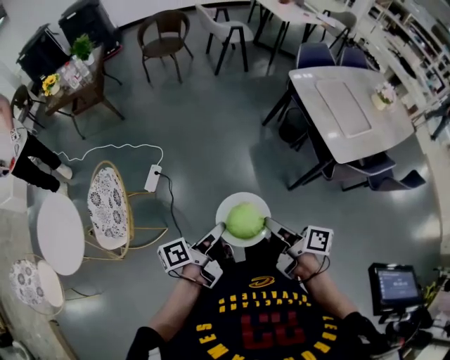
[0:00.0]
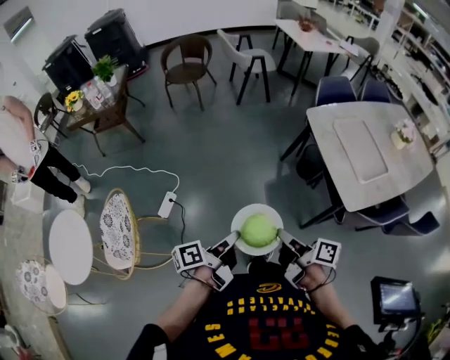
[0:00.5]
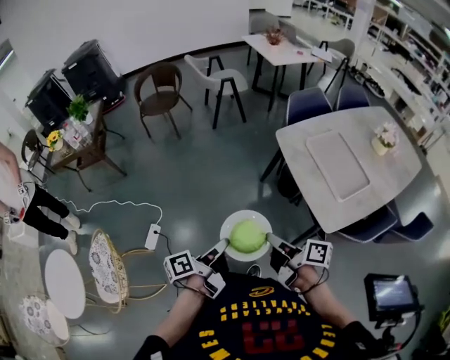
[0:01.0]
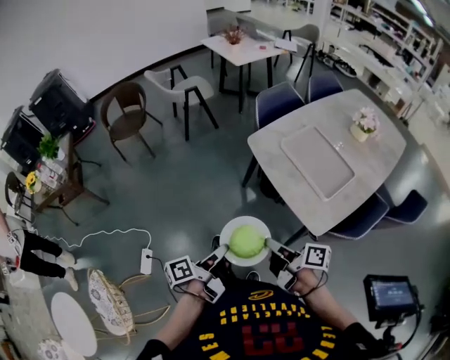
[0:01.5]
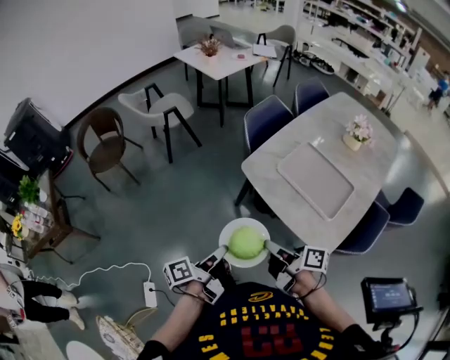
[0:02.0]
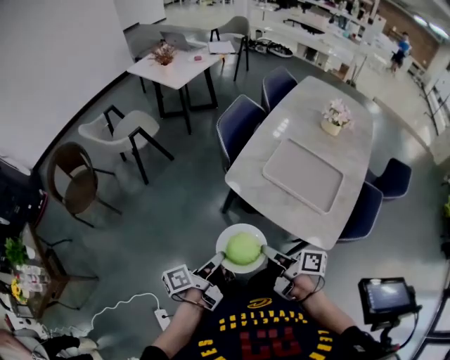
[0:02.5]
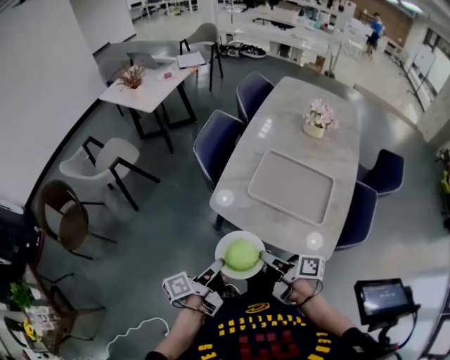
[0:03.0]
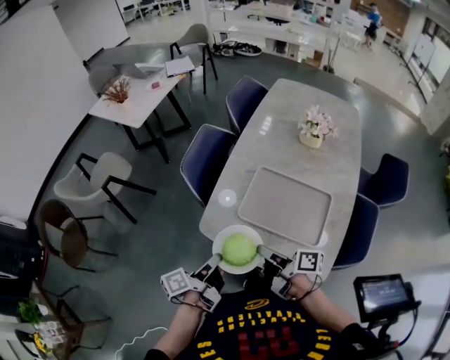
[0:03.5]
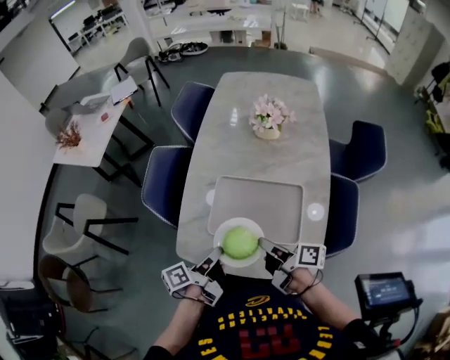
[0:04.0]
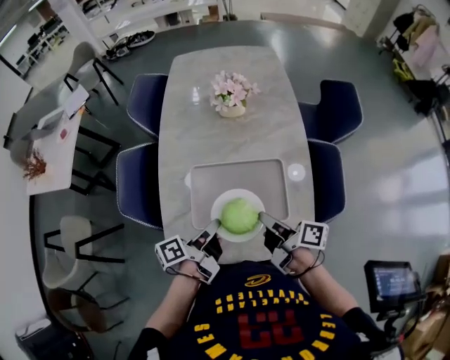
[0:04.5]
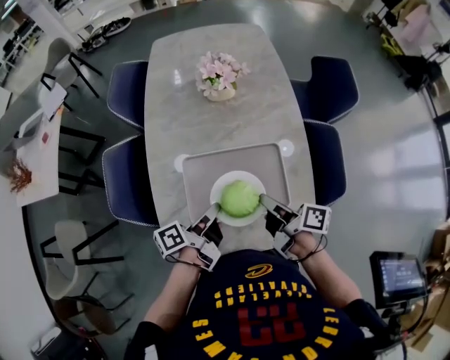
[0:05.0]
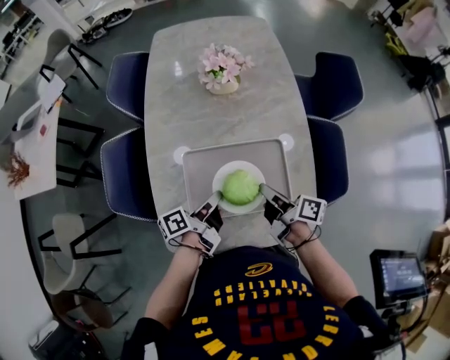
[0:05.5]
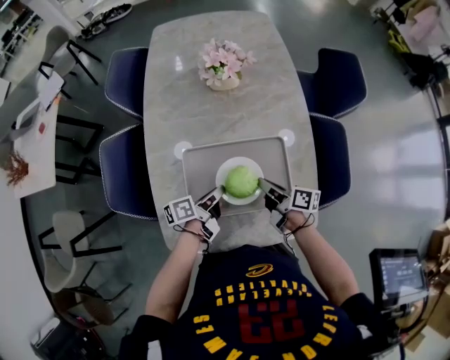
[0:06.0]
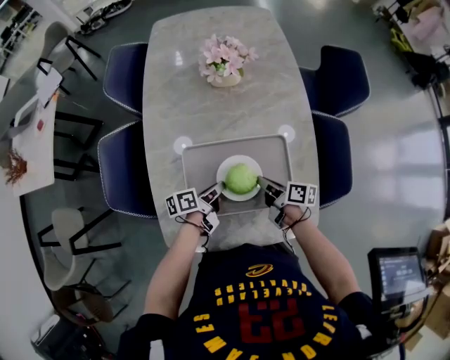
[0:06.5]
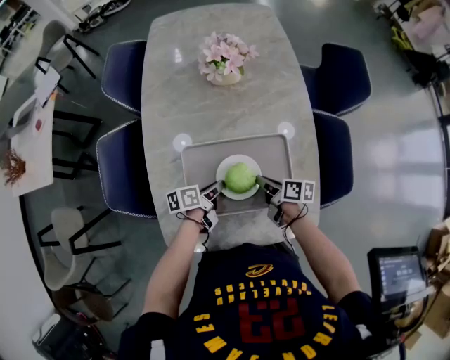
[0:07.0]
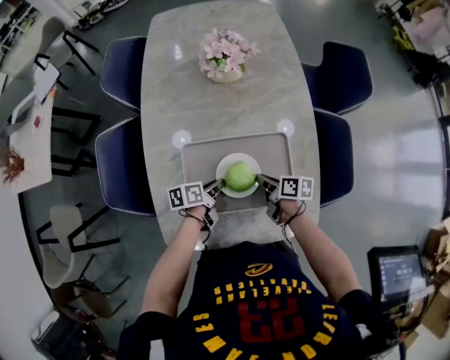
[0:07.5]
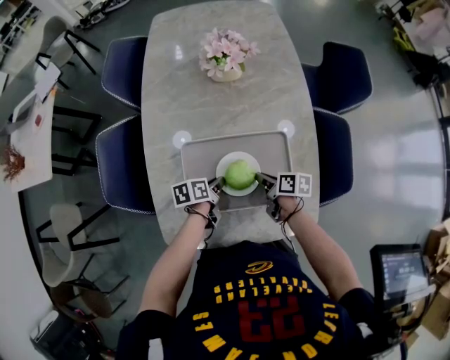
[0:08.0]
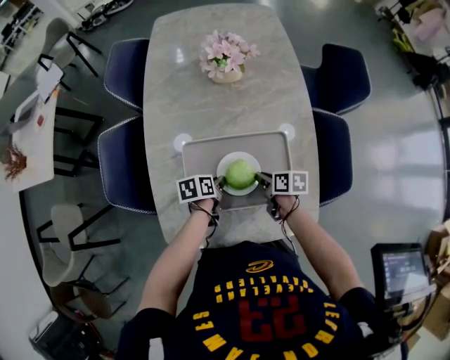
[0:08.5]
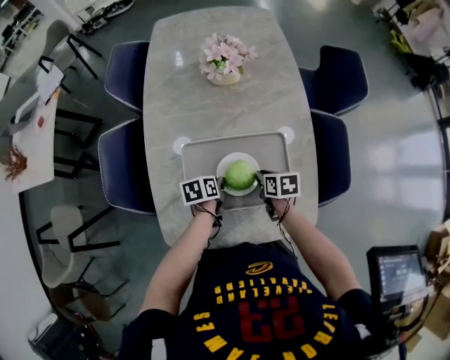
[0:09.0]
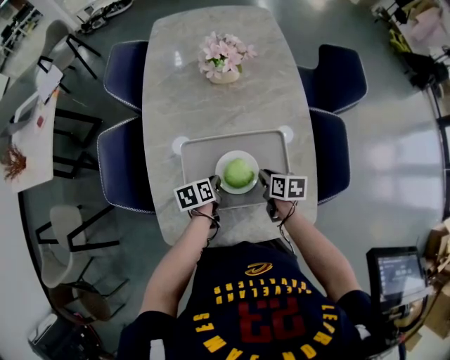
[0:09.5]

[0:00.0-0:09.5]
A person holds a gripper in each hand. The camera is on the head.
0:00.0 to 0:02.0: The right gripper changes place by roughly 50 cm, and turns by about 20 degrees.
0:02.0 to 0:04.0: The right gripper changes place by roughly 35 cm, and swivels approximately 30 degrees.
0:04.0 to 0:05.5: The right gripper shifts by about 10 cm, and changes its angle by roughly 20 degrees.
0:05.5 to 0:07.5: The right gripper heads downward, covering approximately 15 cm, and changes its angle by approximately 30 degrees.
0:07.5 to 0:09.5: The right gripper swivels roughly 20 degrees.

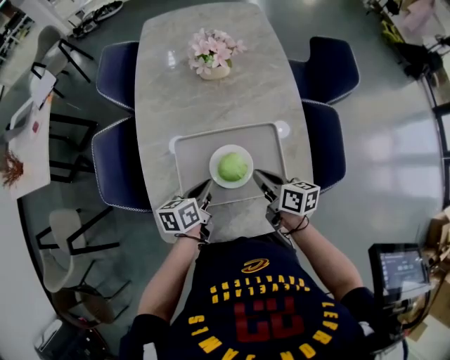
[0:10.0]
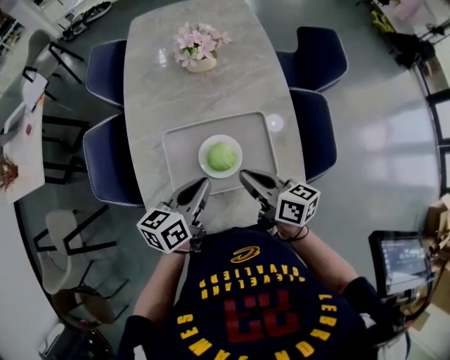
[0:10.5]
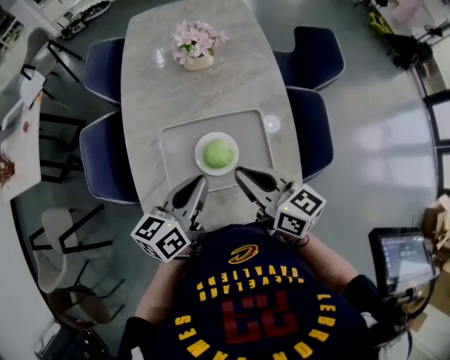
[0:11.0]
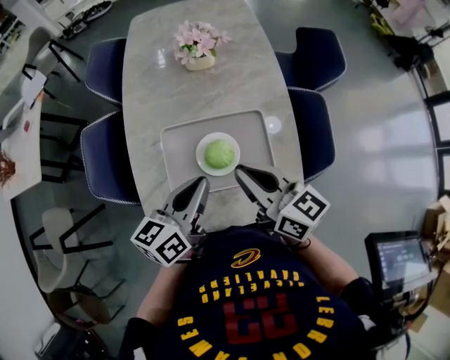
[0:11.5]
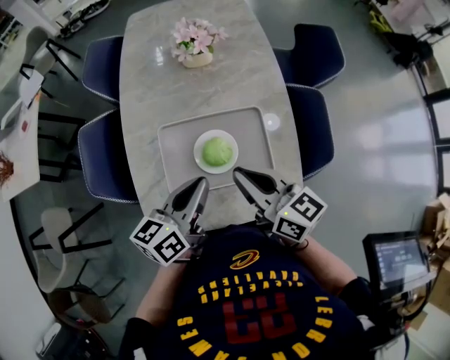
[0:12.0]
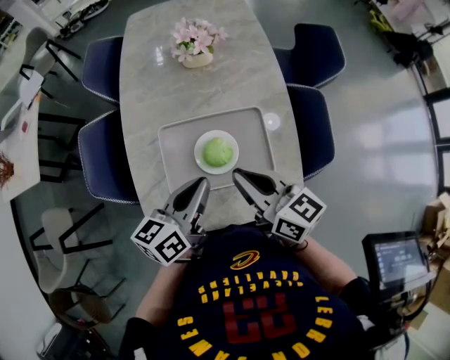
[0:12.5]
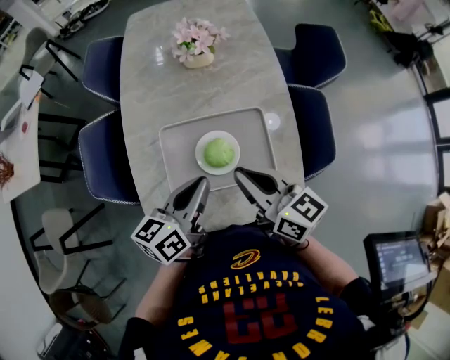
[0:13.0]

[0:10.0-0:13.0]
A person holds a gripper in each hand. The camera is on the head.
0:10.0 to 0:11.5: The right gripper is displaced upward by approximately 20 cm, and changes its angle by approximately 30 degrees.

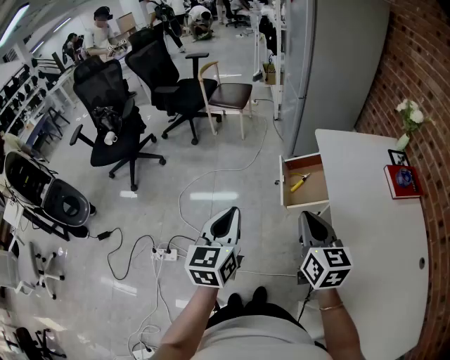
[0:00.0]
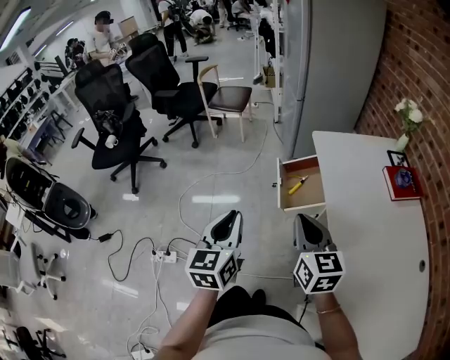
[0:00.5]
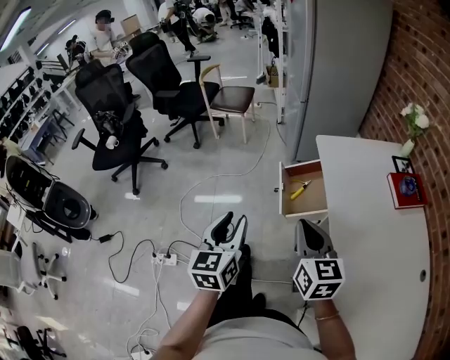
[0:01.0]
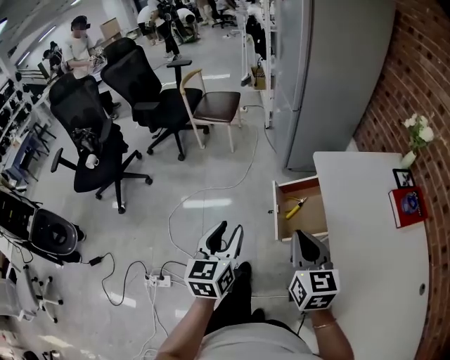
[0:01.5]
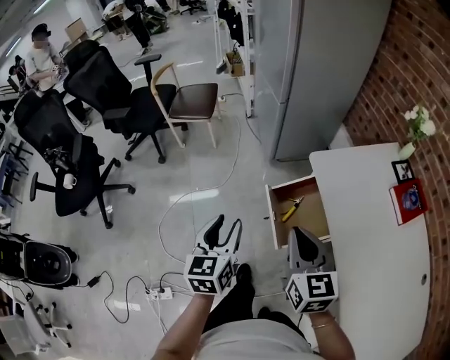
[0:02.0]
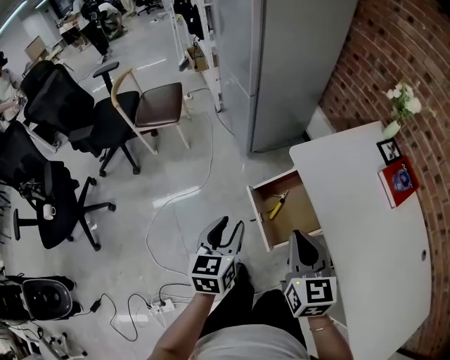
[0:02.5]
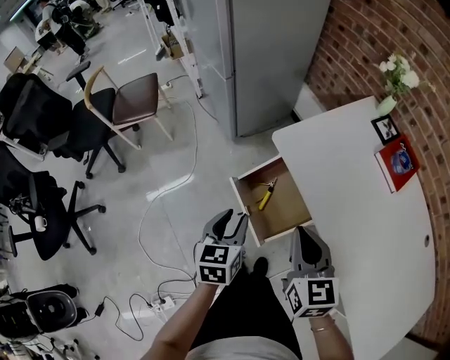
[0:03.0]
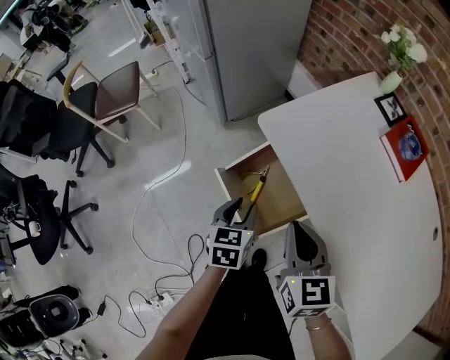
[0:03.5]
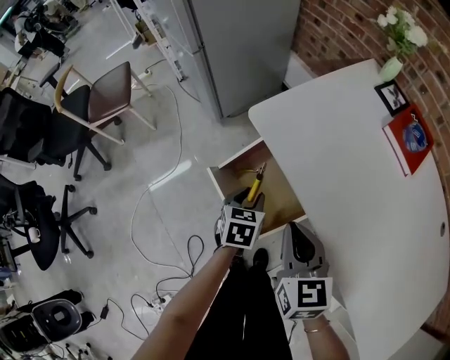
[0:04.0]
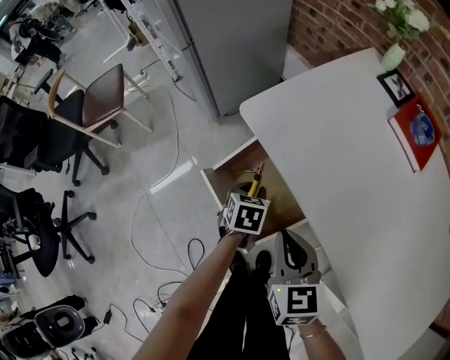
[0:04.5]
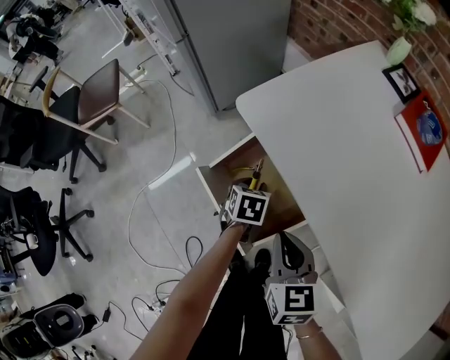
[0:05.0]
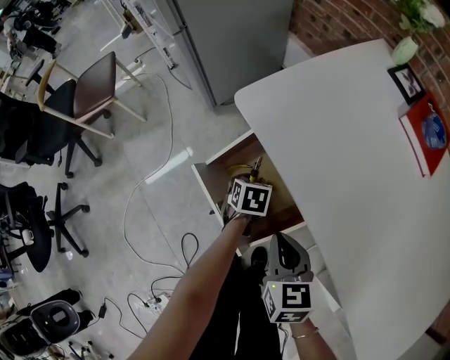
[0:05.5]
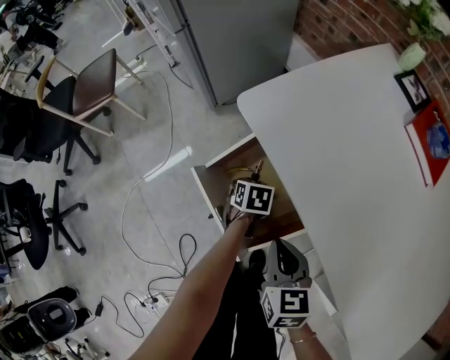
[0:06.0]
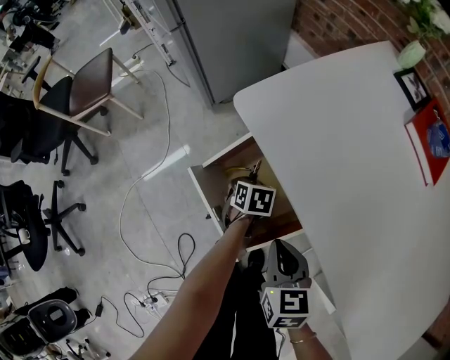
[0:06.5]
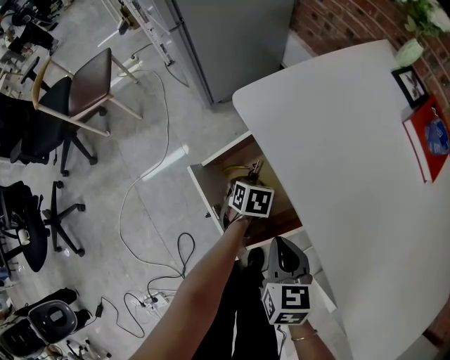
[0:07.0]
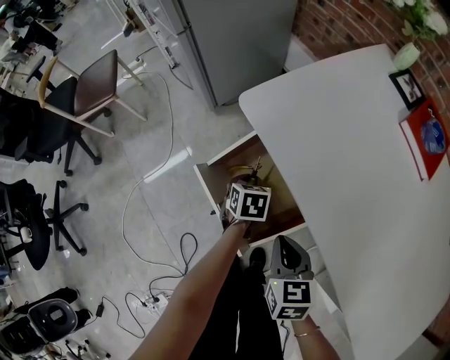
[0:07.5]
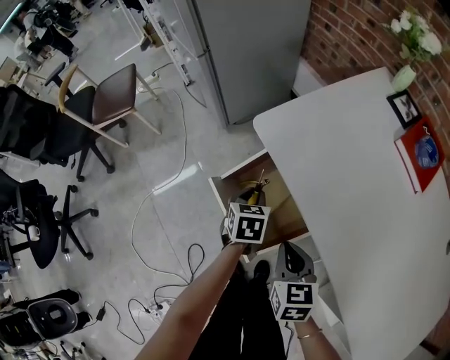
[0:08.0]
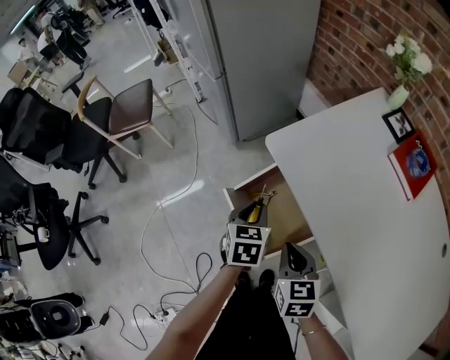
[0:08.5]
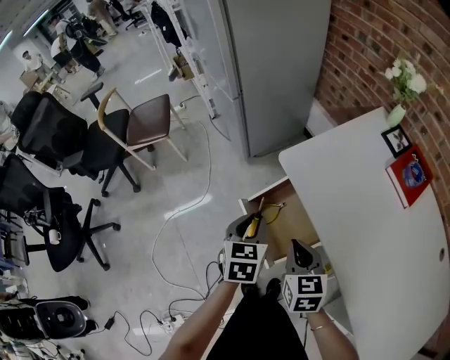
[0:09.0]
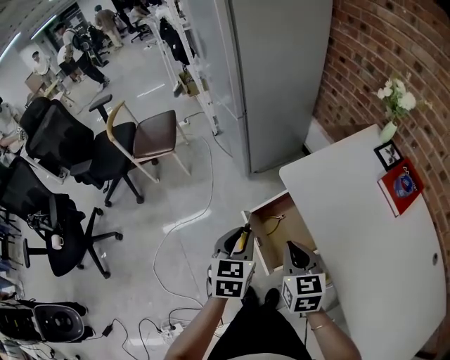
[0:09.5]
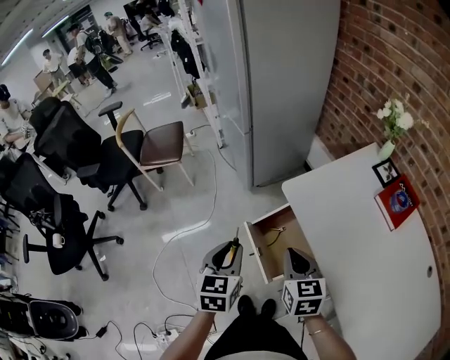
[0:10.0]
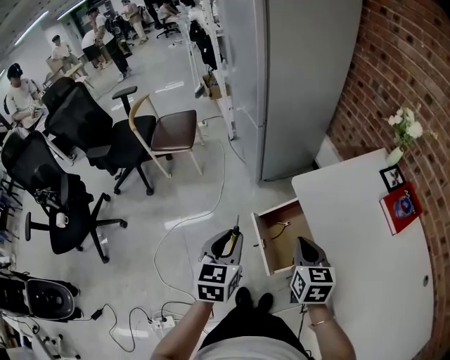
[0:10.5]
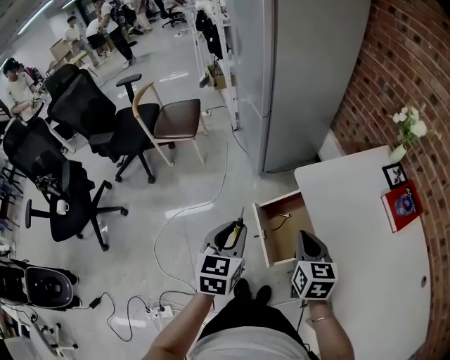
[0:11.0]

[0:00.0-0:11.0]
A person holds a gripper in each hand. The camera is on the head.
0:00.0 to 0:02.0: The grippers both shift forward by some 25 cm. The left gripper opens up.
0:02.0 to 0:03.5: The left gripper moves downward, to the right and forward, approximately 30 cm, and rotates some 30 degrees; the right gripper is displaced downward, to the right and forward by about 20 cm, and turns by some 20 degrees.
0:03.5 to 0:05.5: The right gripper heads downward, covering some 15 cm. Meanwhile the left gripper travels downward and forward by approximately 25 cm, and swivels roughly 20 degrees.
0:05.5 to 0:07.5: The grippers stay close to where they were, moving slightly.
0:07.5 to 0:09.0: The left gripper moves upward, approximately 25 cm, and swivels approximately 20 degrees, while the right gripper is displaced upward by some 15 cm.
0:09.0 to 0:11.0: The left gripper moves upward, to the left and backward, approximately 15 cm; the right gripper goes about 10 cm upward.

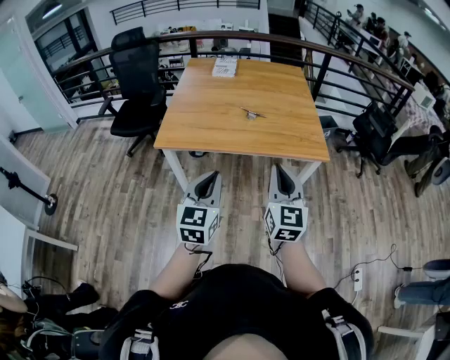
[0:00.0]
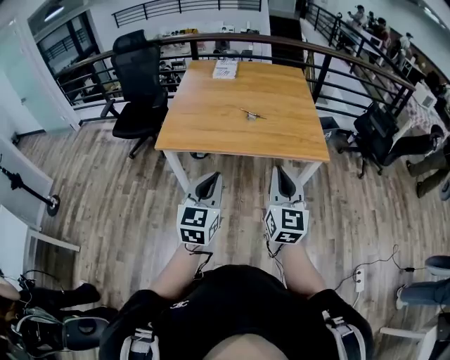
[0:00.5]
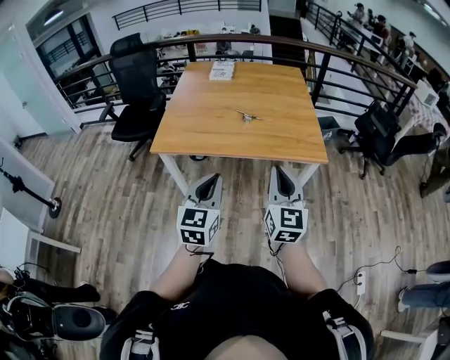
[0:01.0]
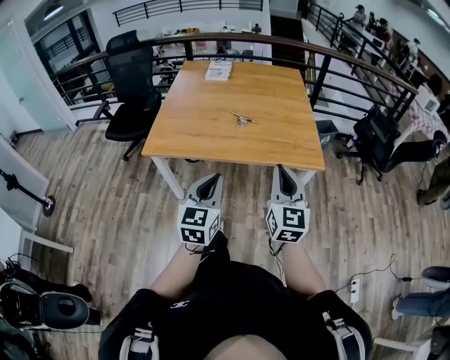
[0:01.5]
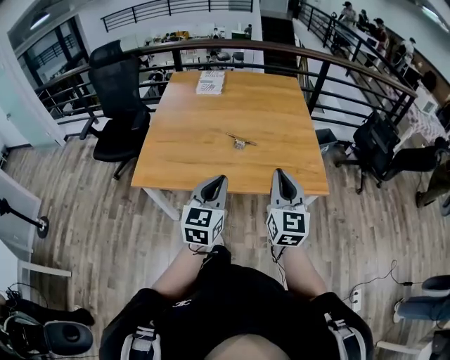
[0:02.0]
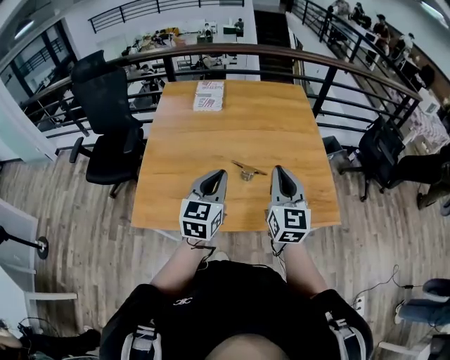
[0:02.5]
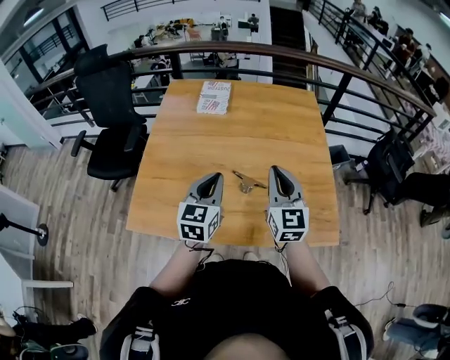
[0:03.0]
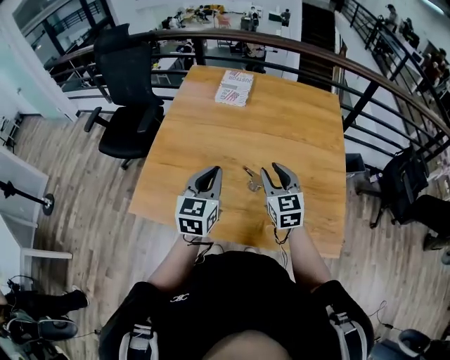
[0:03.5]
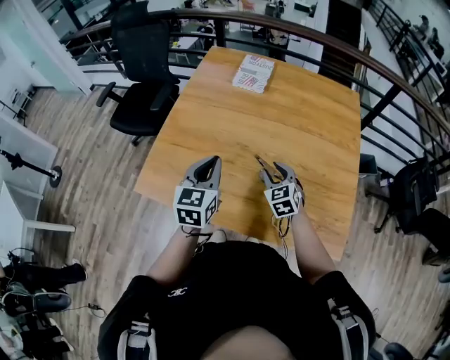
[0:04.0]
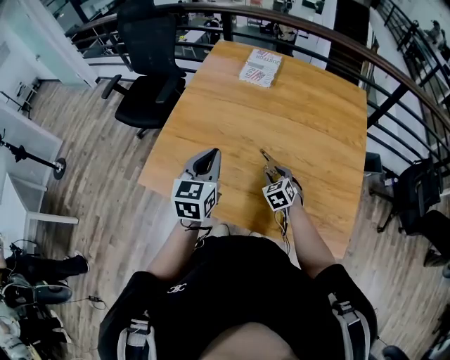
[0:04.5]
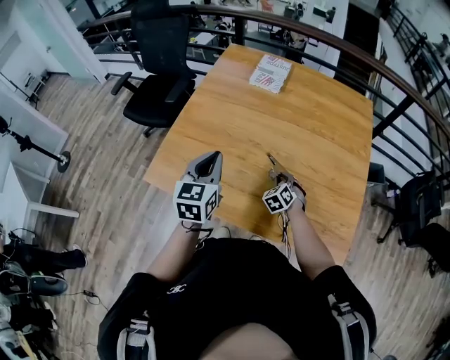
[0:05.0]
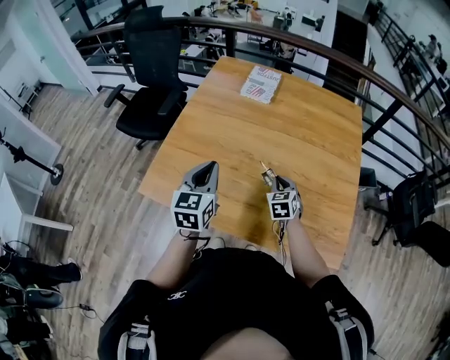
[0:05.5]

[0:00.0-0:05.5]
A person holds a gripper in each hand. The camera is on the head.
0:00.0 to 0:02.0: Both grippers travel together forward, about 30 cm.
0:02.0 to 0:03.5: The grippers both shift forward by about 40 cm. The right gripper rotates about 30 degrees, and opens up.
0:03.5 to 0:05.5: The left gripper shifts about 5 cm to the left. The right gripper heads downward, covering about 15 cm, swivels roughly 20 degrees, and closes.
